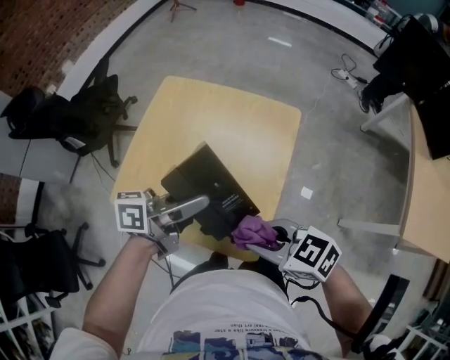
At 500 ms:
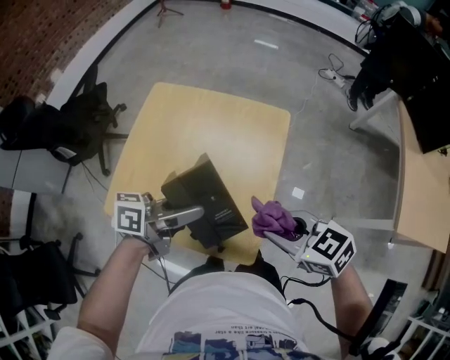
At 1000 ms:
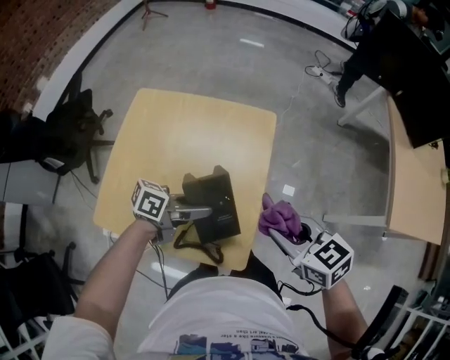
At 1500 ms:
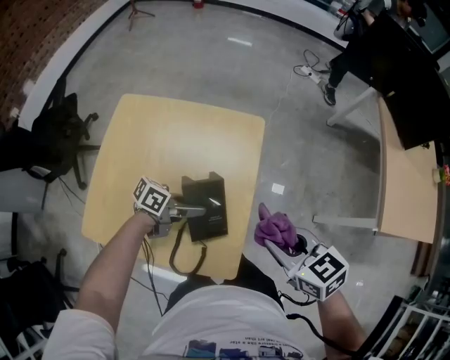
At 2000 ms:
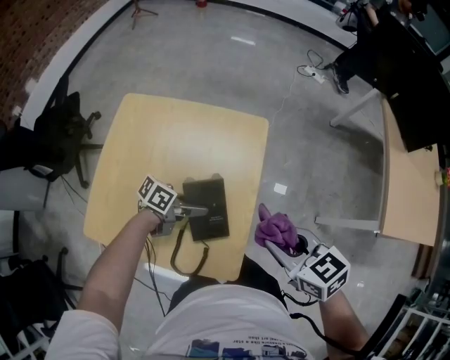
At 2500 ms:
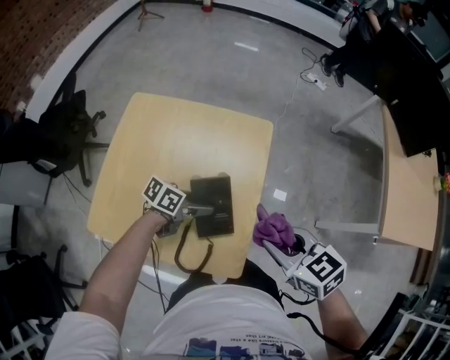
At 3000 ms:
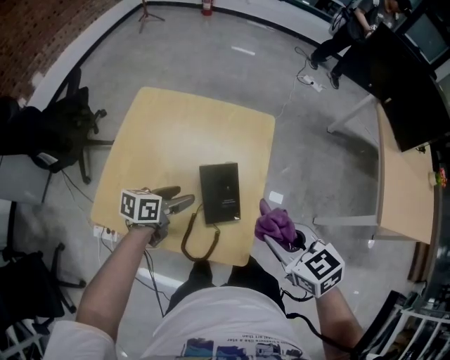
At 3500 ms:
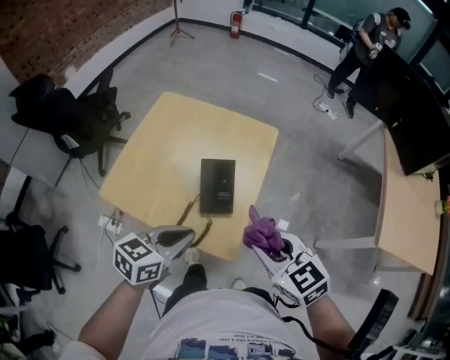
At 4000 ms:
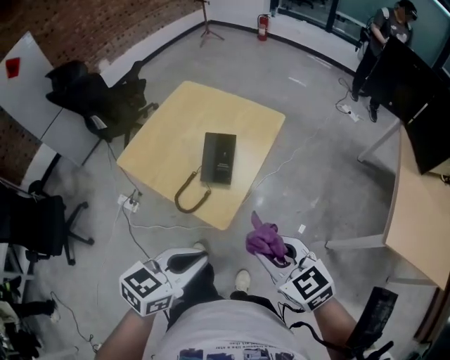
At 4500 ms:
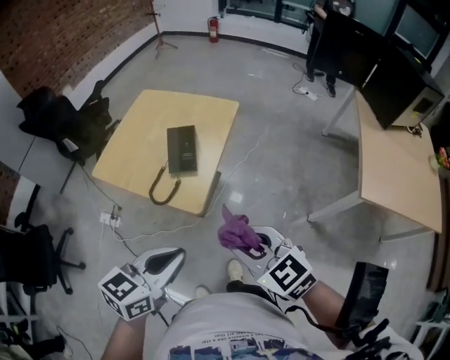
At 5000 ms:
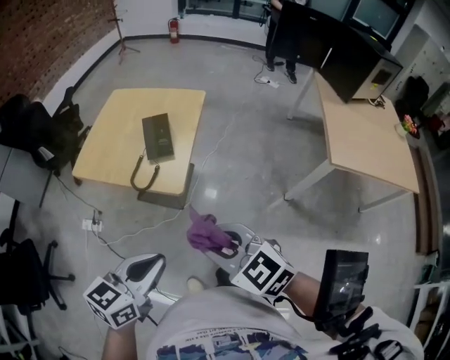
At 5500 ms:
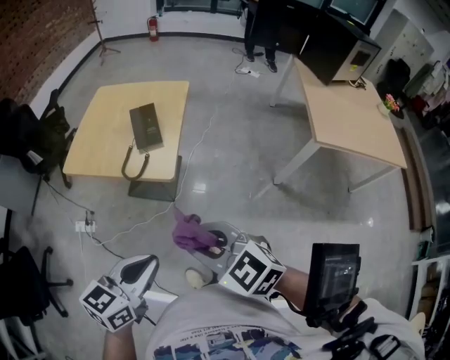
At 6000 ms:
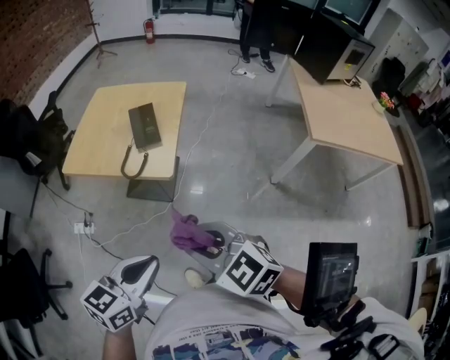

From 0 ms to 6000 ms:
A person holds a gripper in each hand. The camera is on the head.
From 0 ms to 2000 ms: The left gripper moves downward, some 20 cm, and turns by about 40 degrees; the right gripper shifts by some 10 cm, and changes its angle by some 30 degrees.
From 2000 ms to 4000 ms: The right gripper moves some 15 cm, and changes its angle by some 30 degrees, while the left gripper moves approximately 35 cm, changes its angle by roughly 60 degrees, and closes its fingers.
From 4000 ms to 6000 ms: The left gripper goes about 15 cm backward, while the right gripper travels backward and to the left by approximately 20 cm.

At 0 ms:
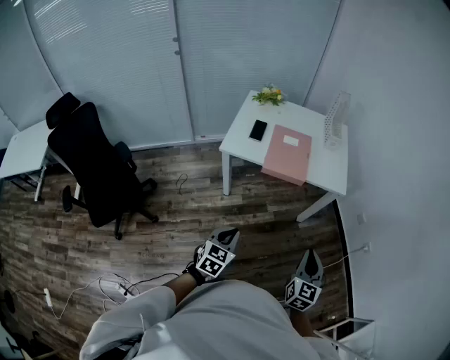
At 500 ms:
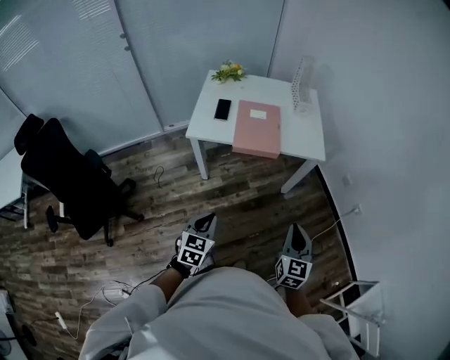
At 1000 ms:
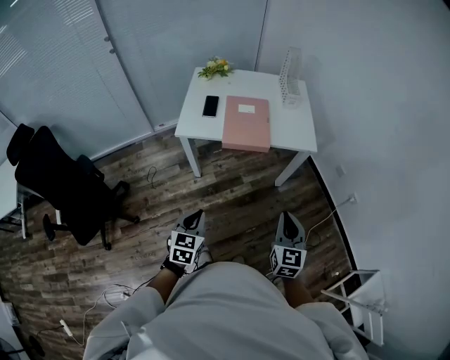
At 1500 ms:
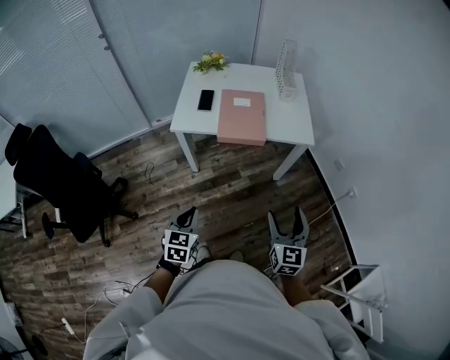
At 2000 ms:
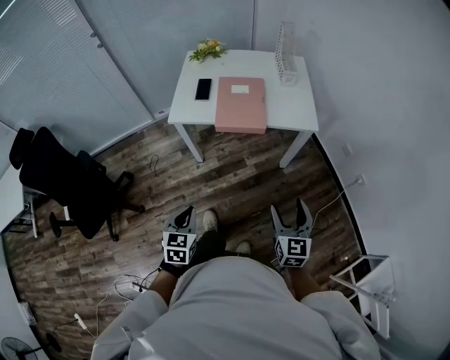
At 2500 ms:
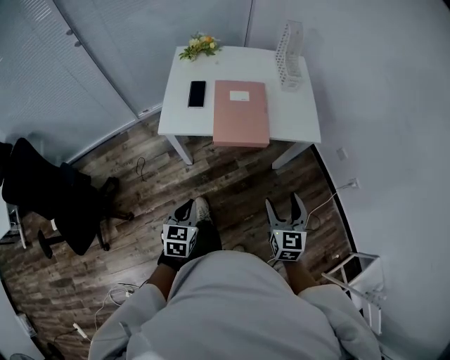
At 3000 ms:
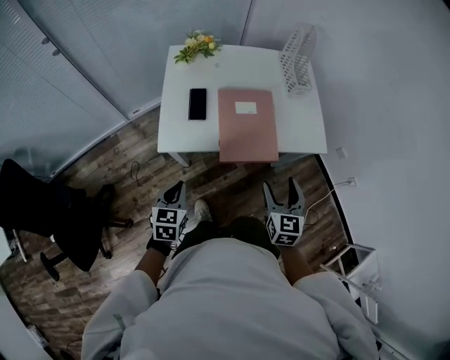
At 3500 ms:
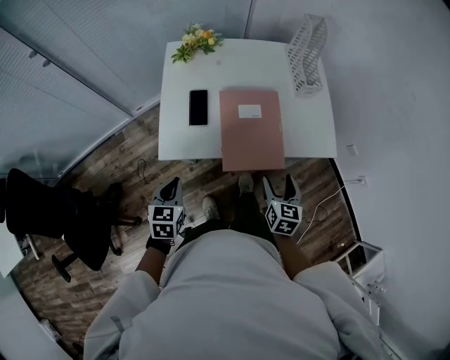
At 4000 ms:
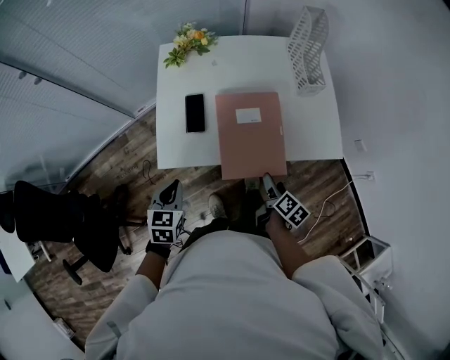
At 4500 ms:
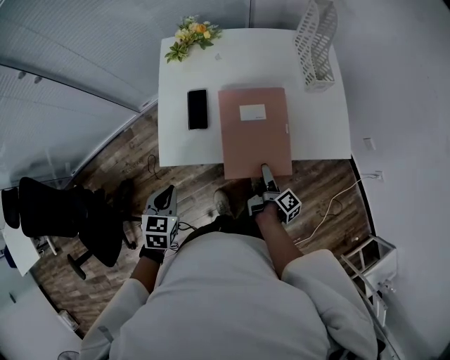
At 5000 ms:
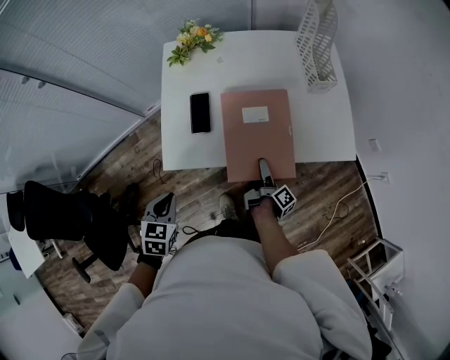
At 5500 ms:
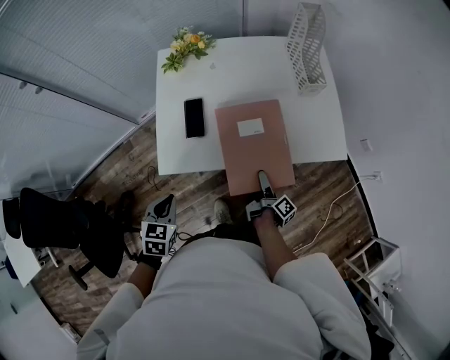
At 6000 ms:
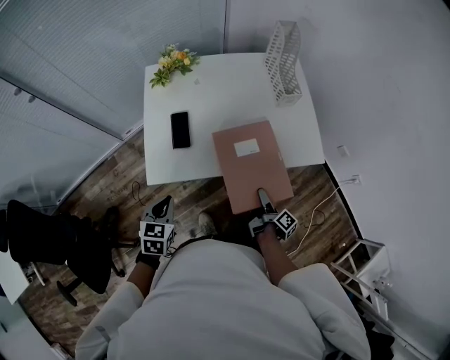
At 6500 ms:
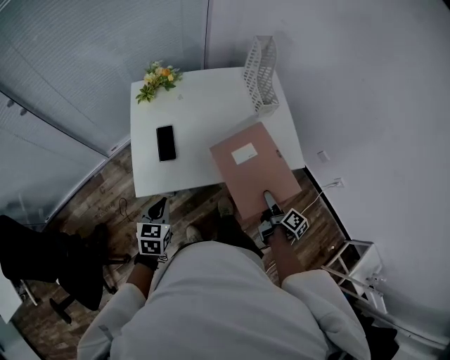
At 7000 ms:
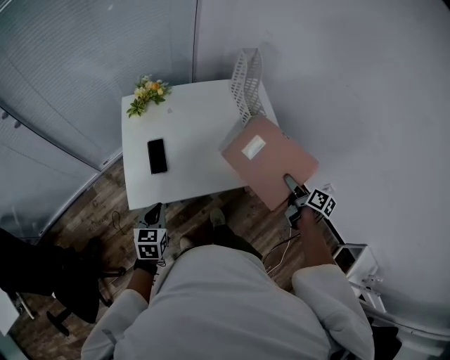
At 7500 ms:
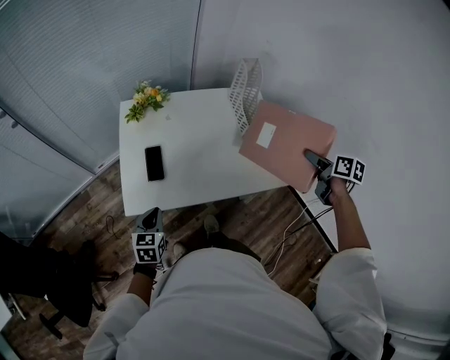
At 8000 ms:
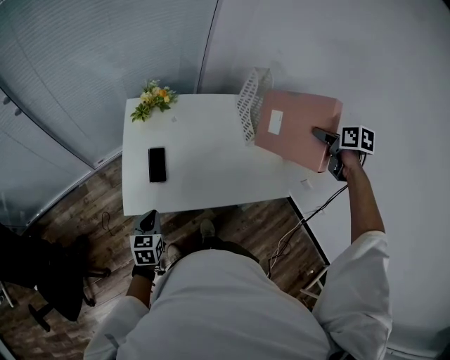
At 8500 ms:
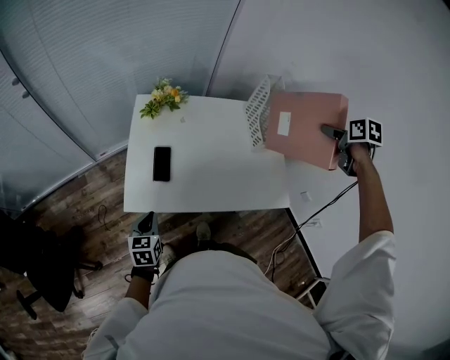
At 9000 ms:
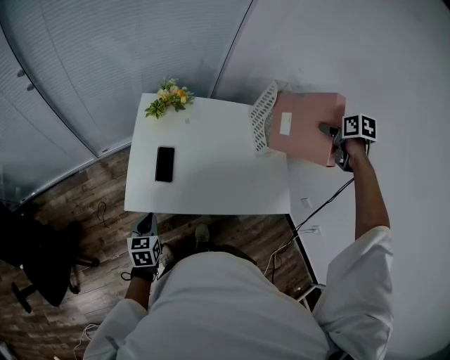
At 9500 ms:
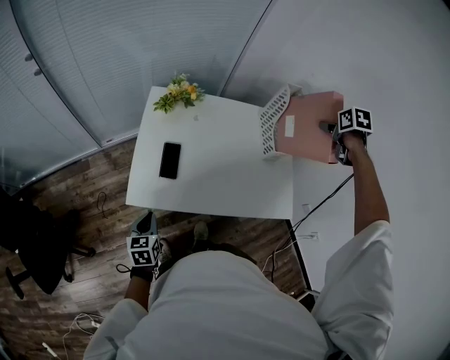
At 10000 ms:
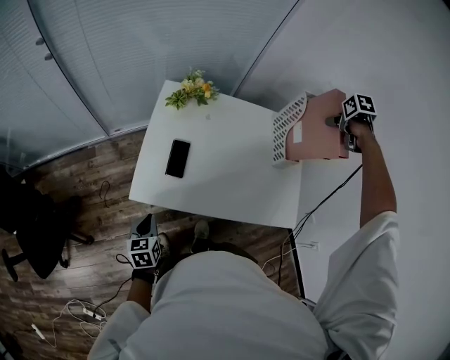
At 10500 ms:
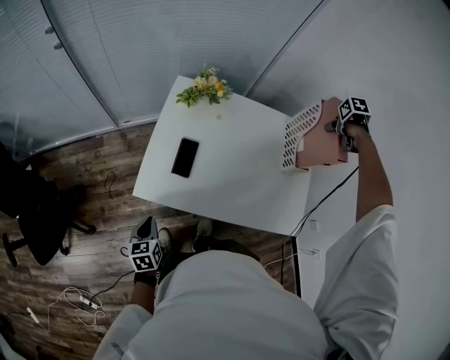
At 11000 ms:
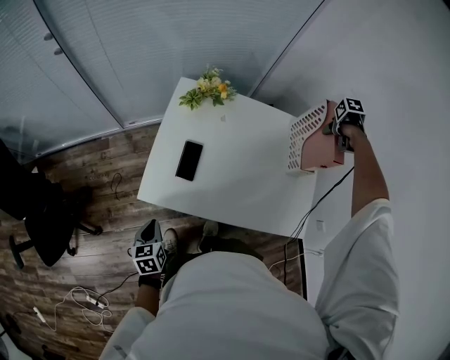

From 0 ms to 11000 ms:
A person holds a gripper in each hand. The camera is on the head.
From 0 ms to 2000 ms: The right gripper shifts about 5 cm forward, and opens.
From 2000 ms to 3500 ms: The left gripper shifts roughly 40 cm forward and to the left; the right gripper is displaced forward by about 35 cm, and turns by approximately 20 degrees.
From 3500 ms to 5500 ms: The right gripper shifts about 15 cm downward, and rolls clockwise, seen from behind, by approximately 80 degrees.
From 5500 ms to 7500 ms: The left gripper is displaced forward and to the right by approximately 10 cm. Meanwhile the right gripper travels upward, to the right and forward by some 50 cm, and rolls counterclockwise, seen from behind, by roughly 60 degrees.
From 7500 ms to 9000 ms: The left gripper shifts by approximately 5 cm, while the right gripper moves forward and upward, roughly 20 cm, and swivels roughly 30 degrees.
From 9000 ms to 11000 ms: The left gripper moves approximately 5 cm, and changes its angle by roughly 20 degrees; the right gripper goes about 15 cm downward, and tilts its fingers some 30 degrees downward.

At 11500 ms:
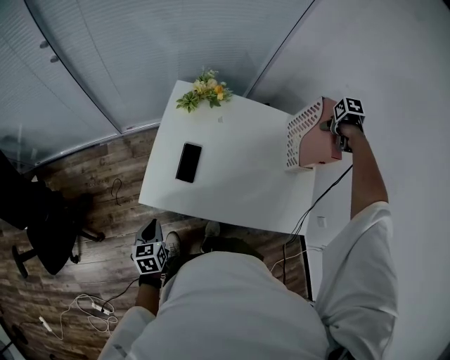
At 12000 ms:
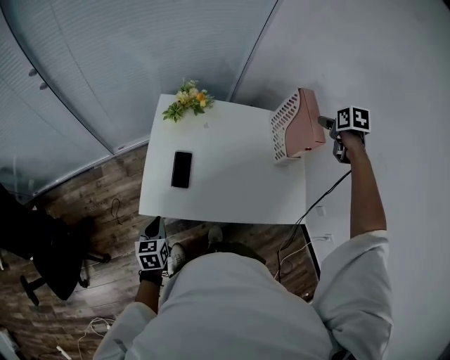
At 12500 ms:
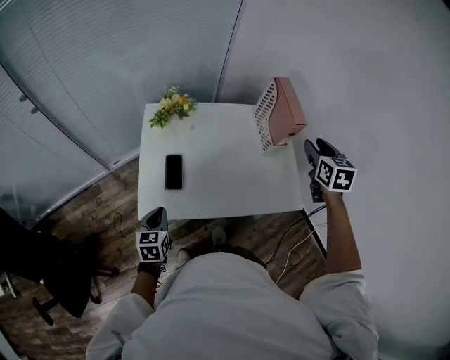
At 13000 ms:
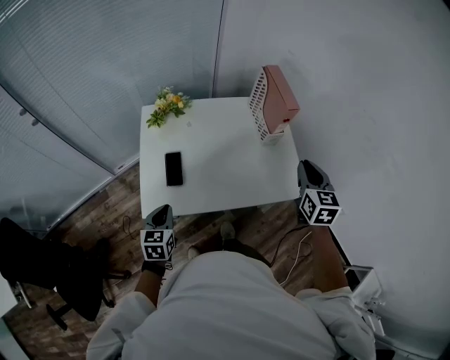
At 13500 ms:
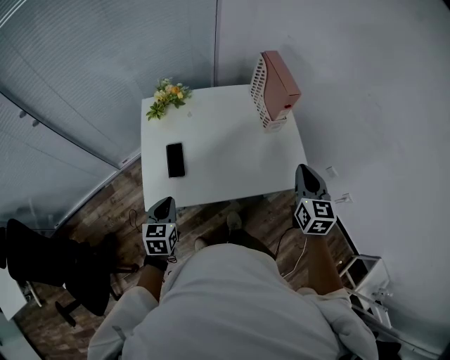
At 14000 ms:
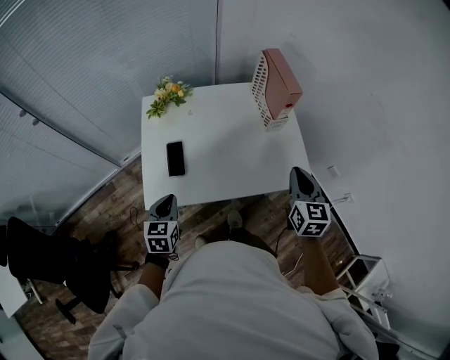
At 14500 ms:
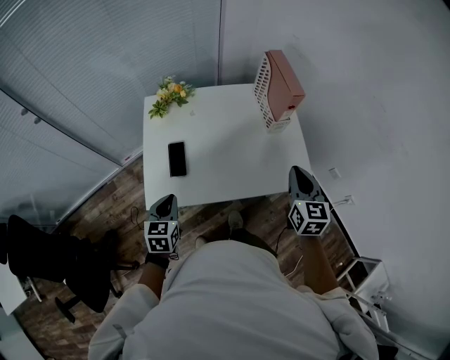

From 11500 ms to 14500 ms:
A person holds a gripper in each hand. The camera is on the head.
From 11500 ms to 13000 ms: The right gripper ends up approximately 35 cm from where it was, tilts its fingers roughly 60 degrees upward, and closes its fingers. The left gripper moves upward, about 10 cm, and changes its angle by some 30 degrees.
From 13000 ms to 14500 ms: The right gripper moves approximately 5 cm.

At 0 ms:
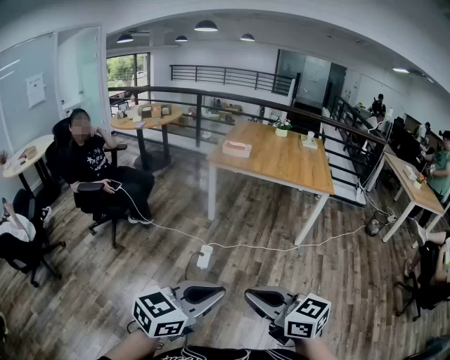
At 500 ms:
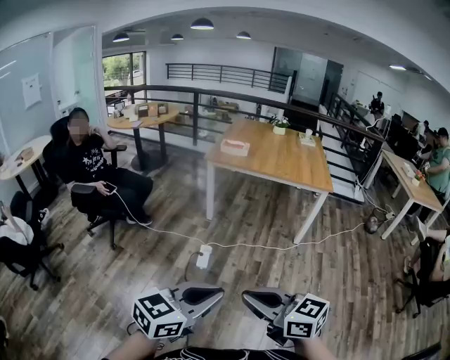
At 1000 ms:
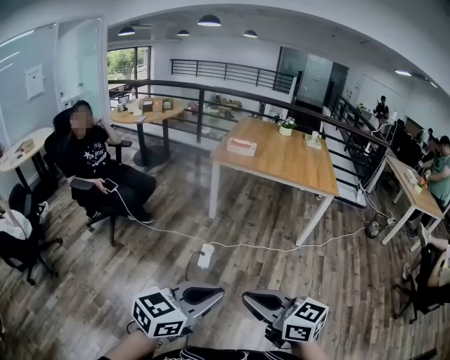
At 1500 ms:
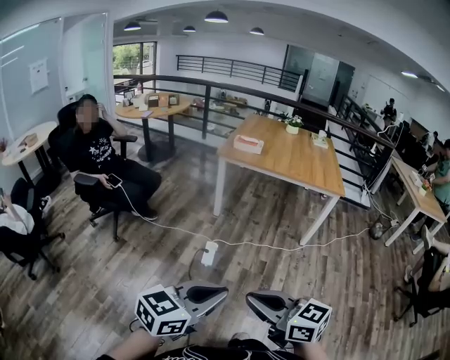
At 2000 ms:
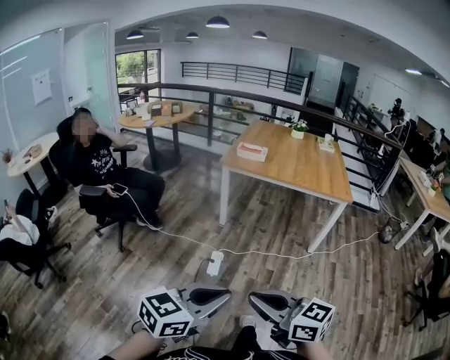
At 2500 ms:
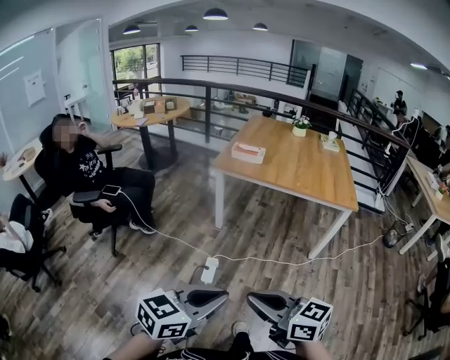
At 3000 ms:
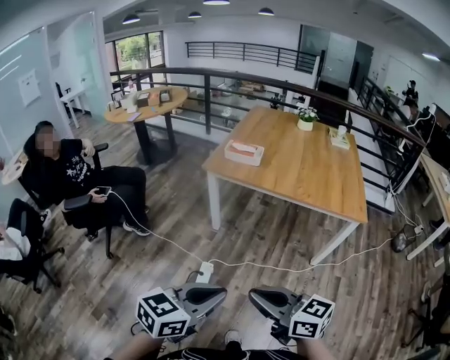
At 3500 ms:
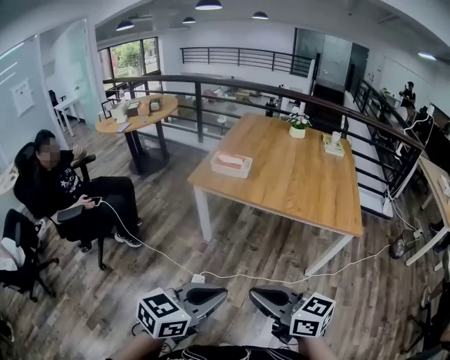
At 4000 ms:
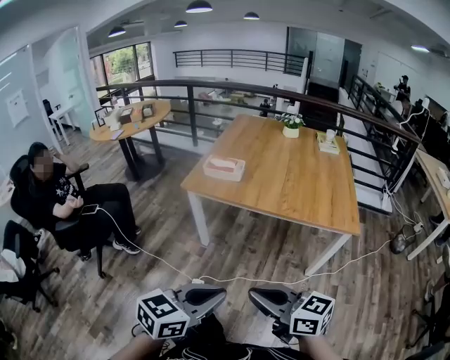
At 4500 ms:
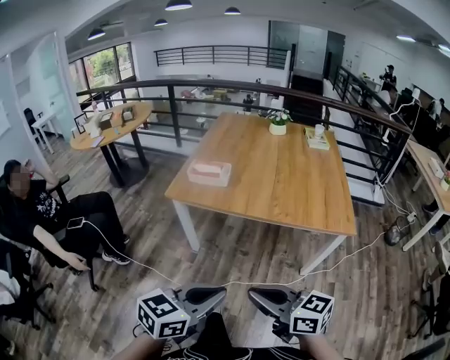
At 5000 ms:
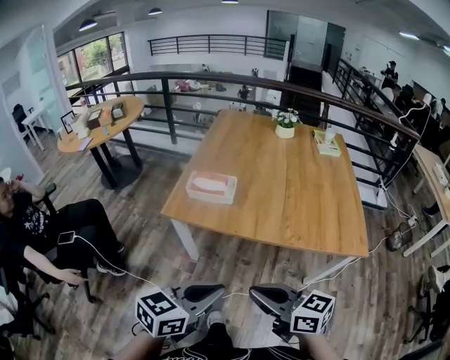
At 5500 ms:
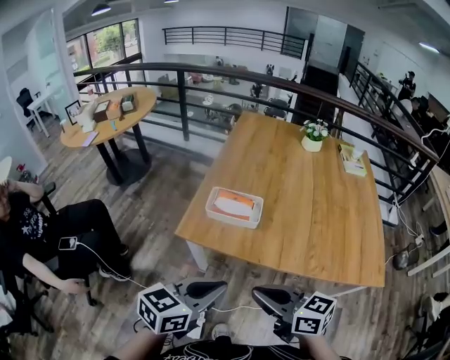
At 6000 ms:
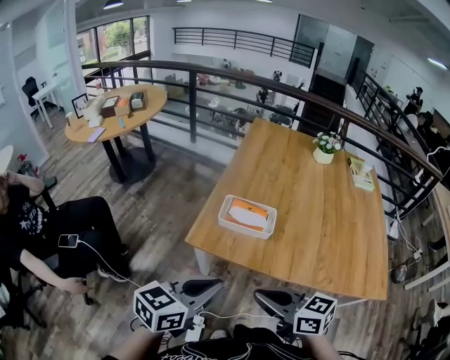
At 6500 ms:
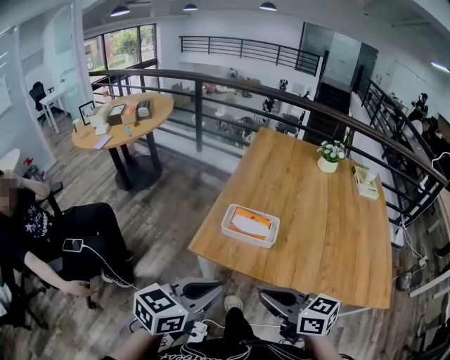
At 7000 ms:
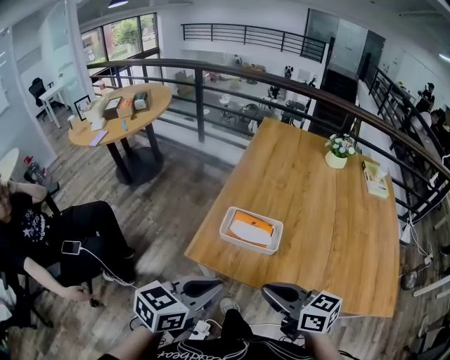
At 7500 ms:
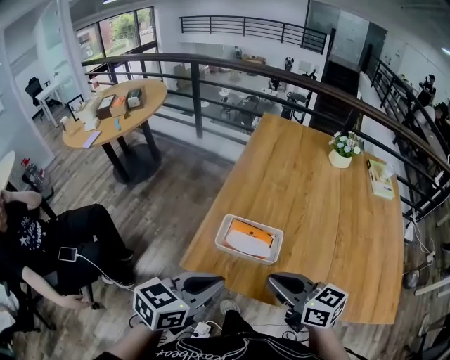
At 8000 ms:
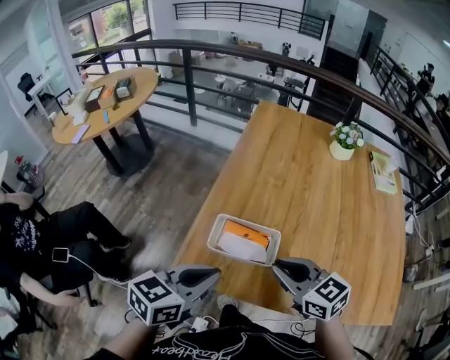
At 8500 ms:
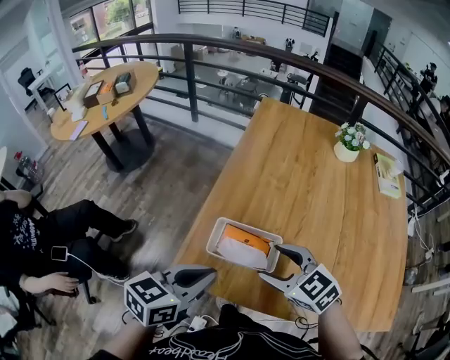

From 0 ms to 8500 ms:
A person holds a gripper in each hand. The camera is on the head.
From 0 ms to 2000 ms: The grippers both shift forward by about 10 cm.
From 2000 ms to 4000 ms: The two grippers travel together, forward and to the right, roughly 50 cm.
From 4000 ms to 6500 ms: The two grippers travel together, forward, approximately 50 cm.
From 6500 ms to 8500 ms: Both grippers travel together forward, about 25 cm. The right gripper swivels roughly 30 degrees, and opens.
